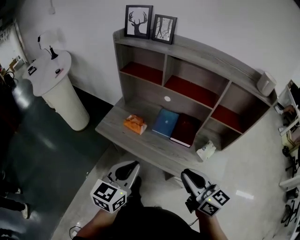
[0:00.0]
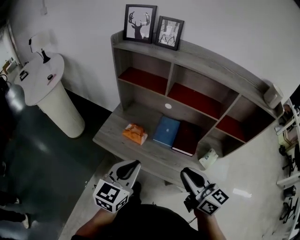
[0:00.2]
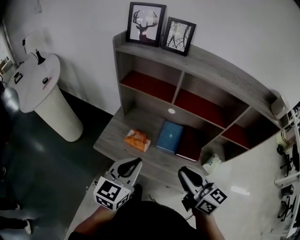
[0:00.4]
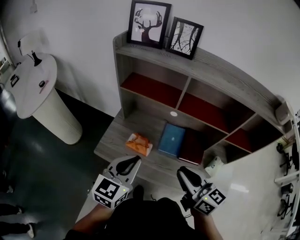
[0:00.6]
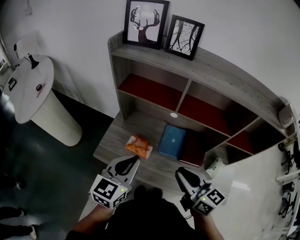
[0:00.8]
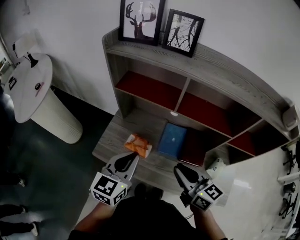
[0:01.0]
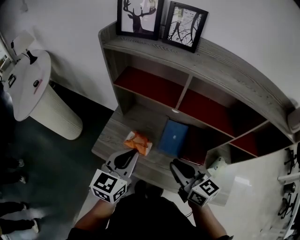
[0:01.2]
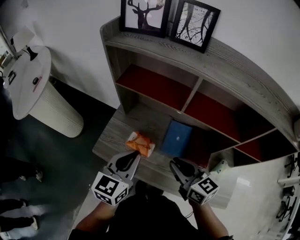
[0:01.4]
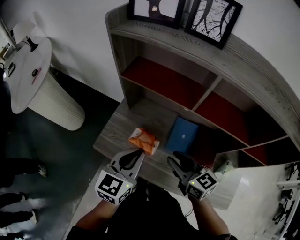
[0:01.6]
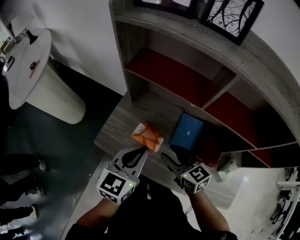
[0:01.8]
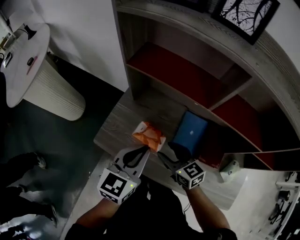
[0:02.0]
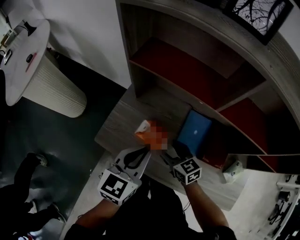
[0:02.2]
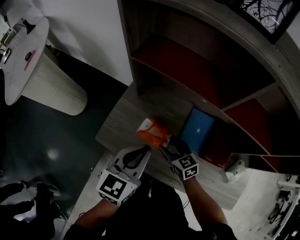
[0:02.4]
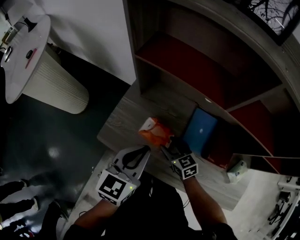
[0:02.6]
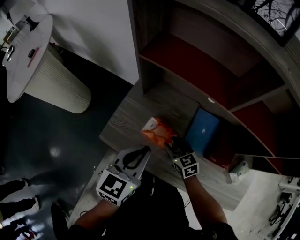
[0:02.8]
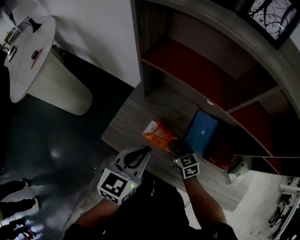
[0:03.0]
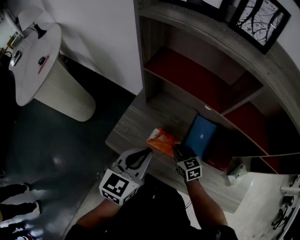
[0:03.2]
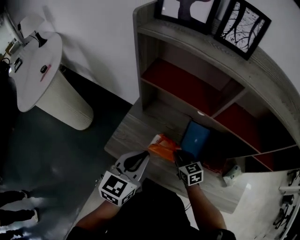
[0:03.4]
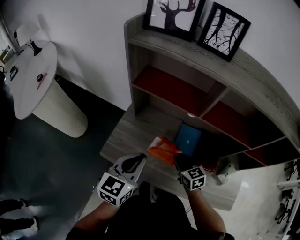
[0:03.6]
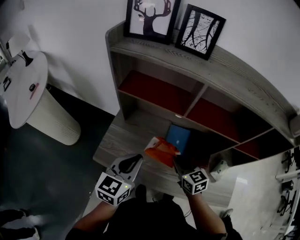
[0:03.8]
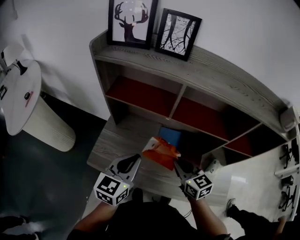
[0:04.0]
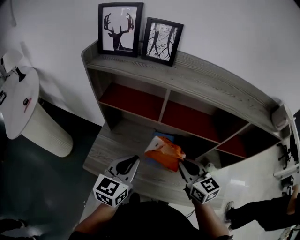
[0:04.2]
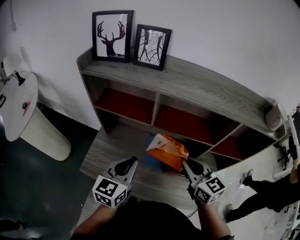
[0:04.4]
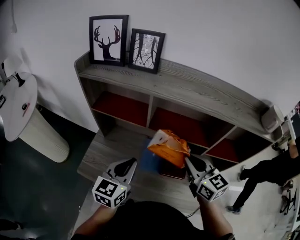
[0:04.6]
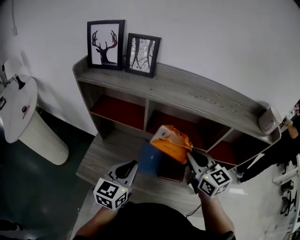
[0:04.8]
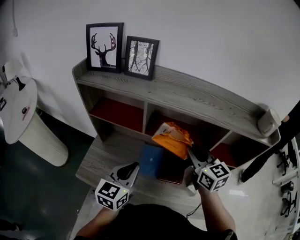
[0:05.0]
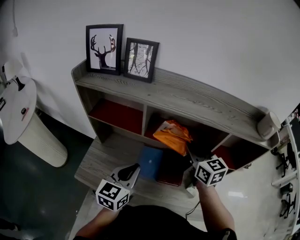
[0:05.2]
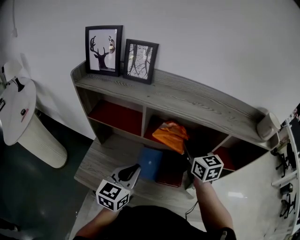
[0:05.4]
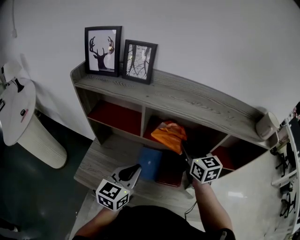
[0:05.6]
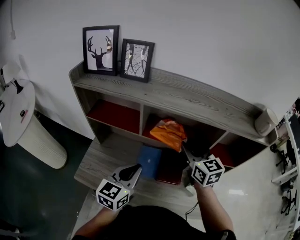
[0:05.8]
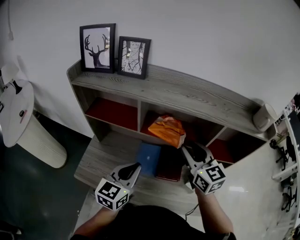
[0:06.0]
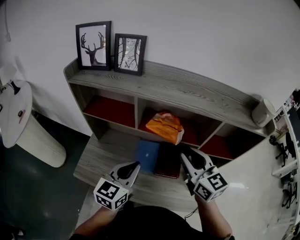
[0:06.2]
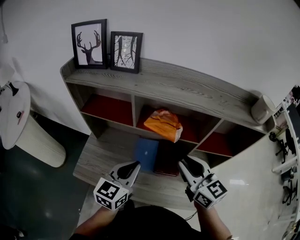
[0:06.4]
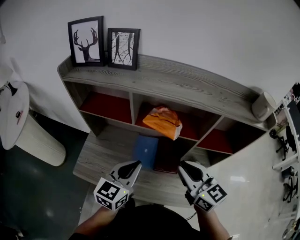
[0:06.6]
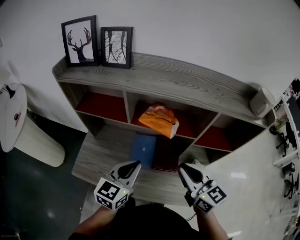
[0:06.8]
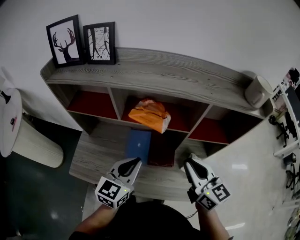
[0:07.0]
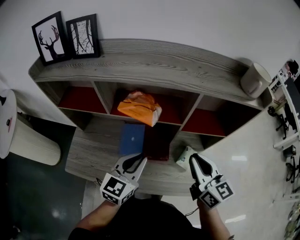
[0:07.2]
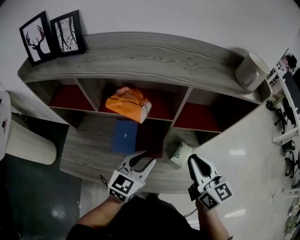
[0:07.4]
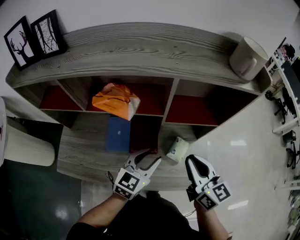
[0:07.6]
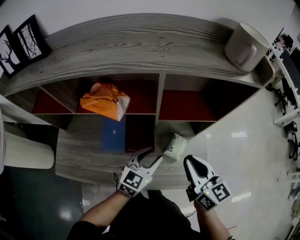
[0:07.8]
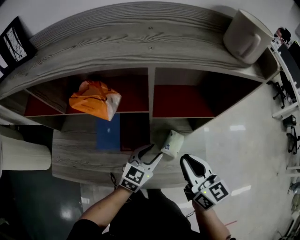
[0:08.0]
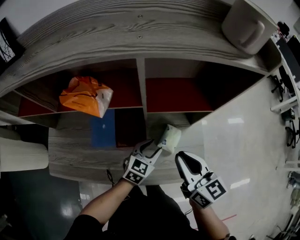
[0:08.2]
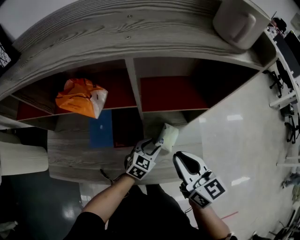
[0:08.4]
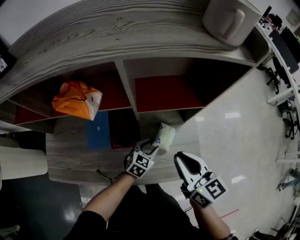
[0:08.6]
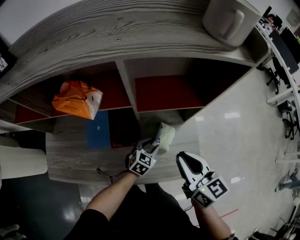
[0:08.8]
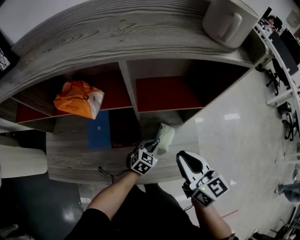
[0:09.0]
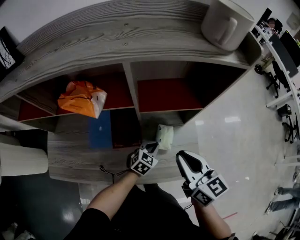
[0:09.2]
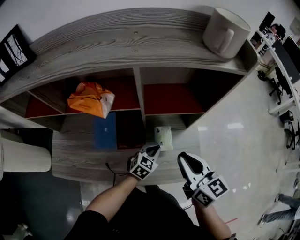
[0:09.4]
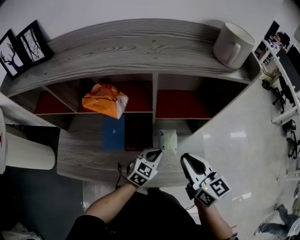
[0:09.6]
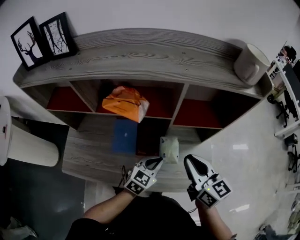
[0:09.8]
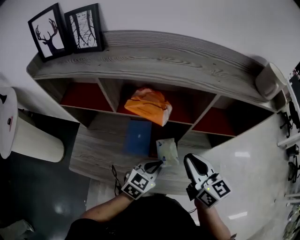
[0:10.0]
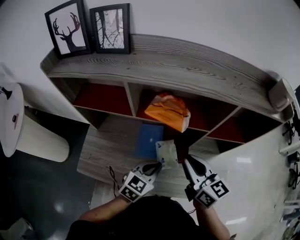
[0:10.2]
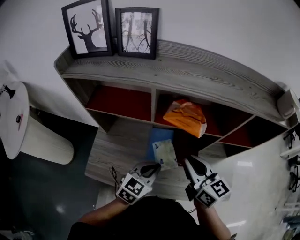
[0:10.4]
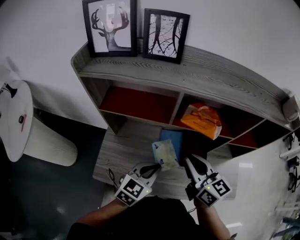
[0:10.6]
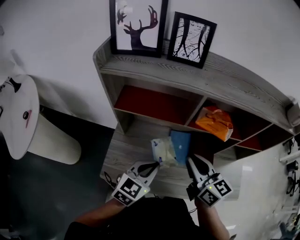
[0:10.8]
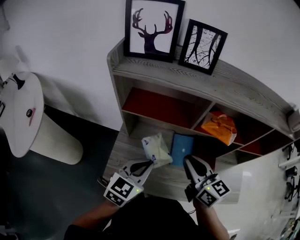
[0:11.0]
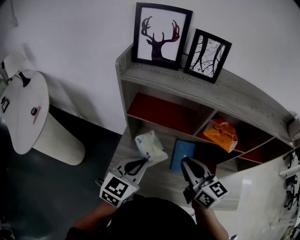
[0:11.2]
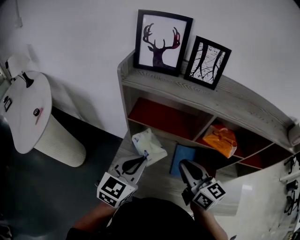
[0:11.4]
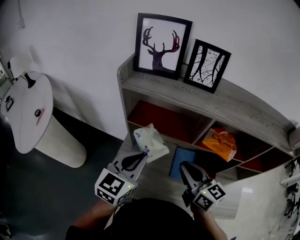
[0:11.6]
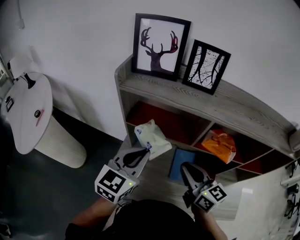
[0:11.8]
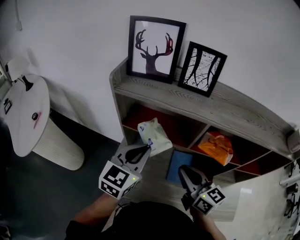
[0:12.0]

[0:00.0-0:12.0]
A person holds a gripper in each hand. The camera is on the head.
0:00.0 to 0:01.6: The left gripper is displaced forward by roughly 30 cm; the right gripper travels forward and to the left by approximately 35 cm.
0:01.6 to 0:03.0: The right gripper is displaced downward by approximately 20 cm, changes its angle by approximately 20 degrees, and opens, then closes again; the left gripper goes some 5 cm downward.
0:03.0 to 0:04.4: The right gripper travels upward and to the right by some 40 cm, and changes its angle by some 30 degrees; the left gripper shifts some 15 cm to the right and upward.
0:04.4 to 0:06.0: The right gripper shifts some 10 cm upward, forward and to the right. Meanwhile the left gripper shifts about 5 cm to the right.
0:06.0 to 0:07.6: The left gripper shifts about 25 cm to the right and downward, swivels roughly 20 degrees, and opens up, while the right gripper moves to the right, backward and downward, about 25 cm, and rotates roughly 20 degrees.
0:07.6 to 0:09.0: The right gripper moves some 5 cm; the left gripper travels downward and to the right by some 25 cm, changes its angle by about 30 degrees, and closes up.
0:09.0 to 0:10.4: The left gripper shifts about 40 cm to the left and upward, and turns by about 20 degrees, while the right gripper shifts roughly 30 cm to the left.
0:10.4 to 0:12.0: The right gripper is displaced to the left by about 15 cm; the left gripper shifts some 30 cm to the left, upward and forward, and turns by approximately 20 degrees.

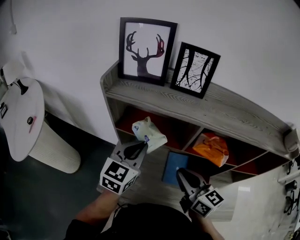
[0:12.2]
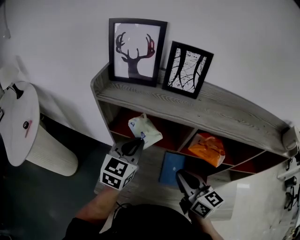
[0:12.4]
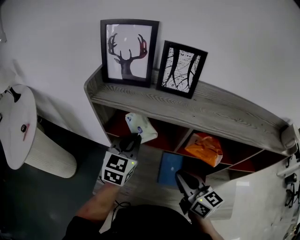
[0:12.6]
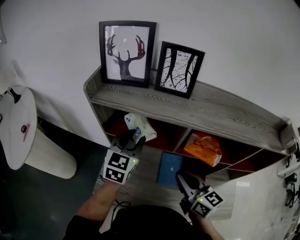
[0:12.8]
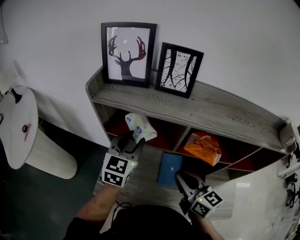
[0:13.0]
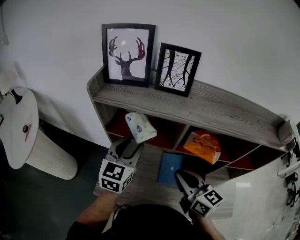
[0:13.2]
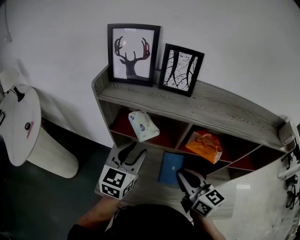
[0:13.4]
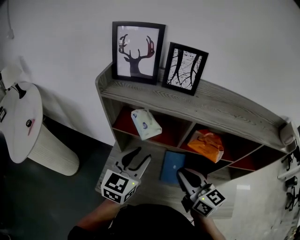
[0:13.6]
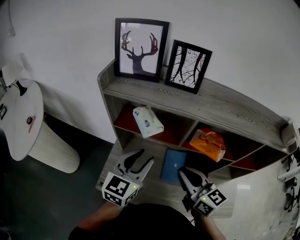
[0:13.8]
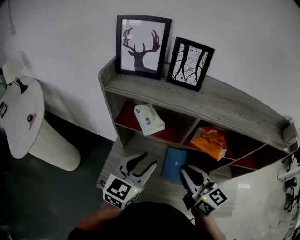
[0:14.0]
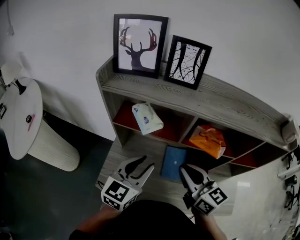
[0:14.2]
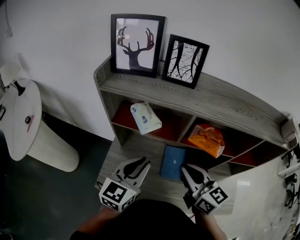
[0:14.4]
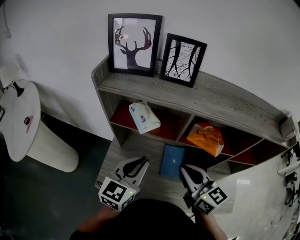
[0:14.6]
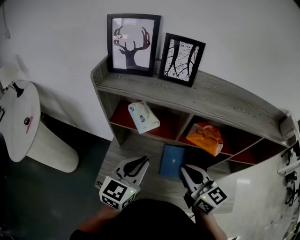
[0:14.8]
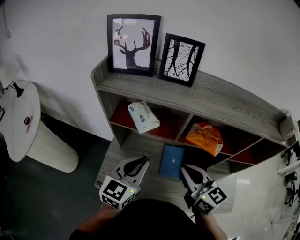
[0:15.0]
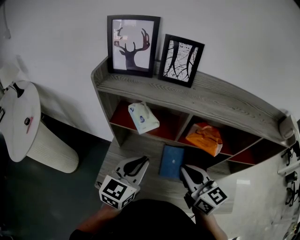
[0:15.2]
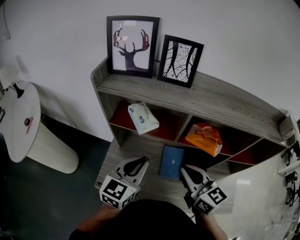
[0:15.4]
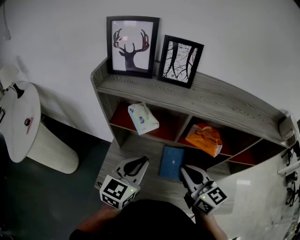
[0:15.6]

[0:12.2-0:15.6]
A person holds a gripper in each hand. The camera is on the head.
0:12.2 to 0:13.8: The left gripper heads backward, covering approximately 5 cm, and opens up.
0:13.8 to 0:15.6: The left gripper closes its fingers.

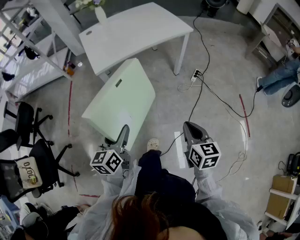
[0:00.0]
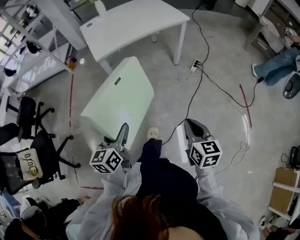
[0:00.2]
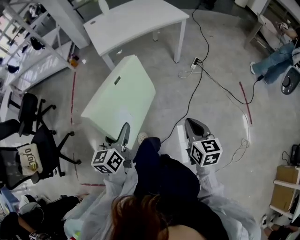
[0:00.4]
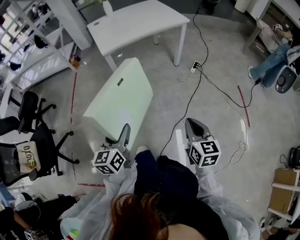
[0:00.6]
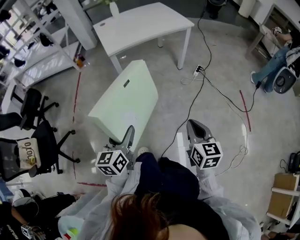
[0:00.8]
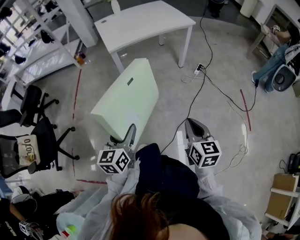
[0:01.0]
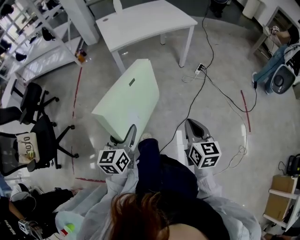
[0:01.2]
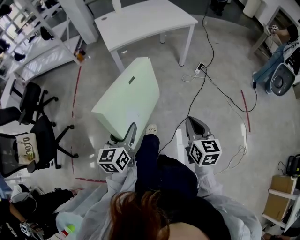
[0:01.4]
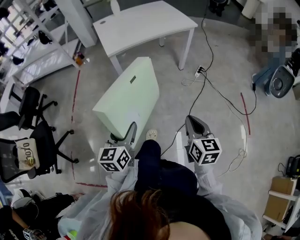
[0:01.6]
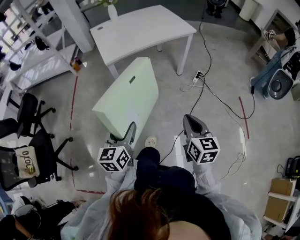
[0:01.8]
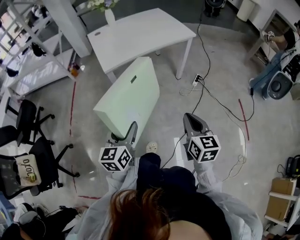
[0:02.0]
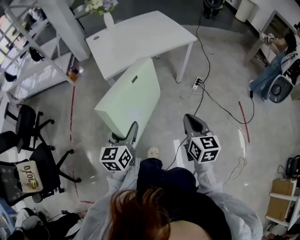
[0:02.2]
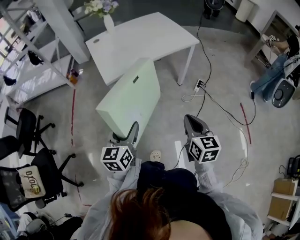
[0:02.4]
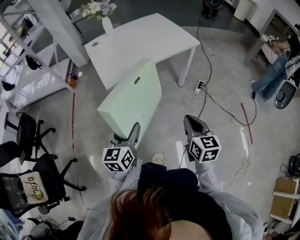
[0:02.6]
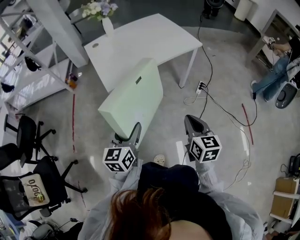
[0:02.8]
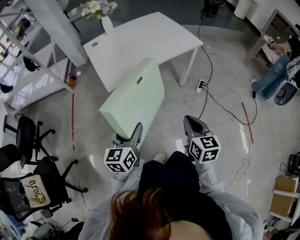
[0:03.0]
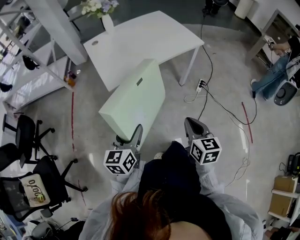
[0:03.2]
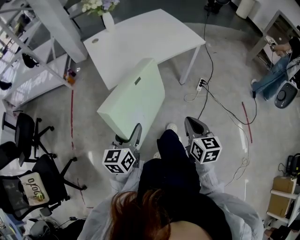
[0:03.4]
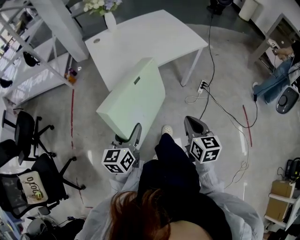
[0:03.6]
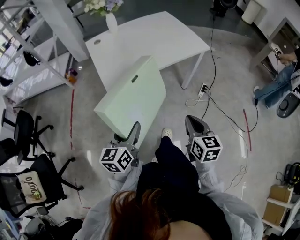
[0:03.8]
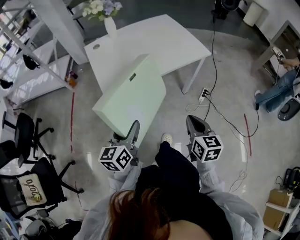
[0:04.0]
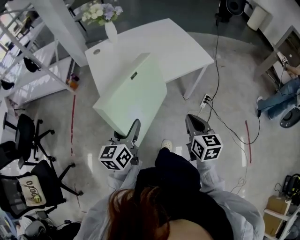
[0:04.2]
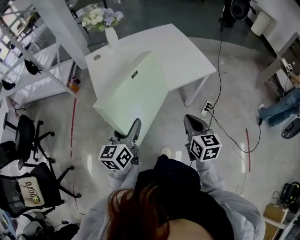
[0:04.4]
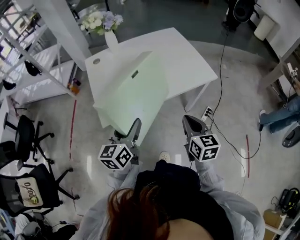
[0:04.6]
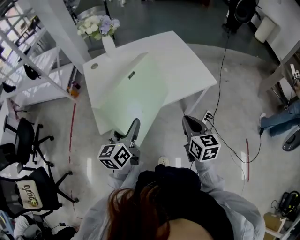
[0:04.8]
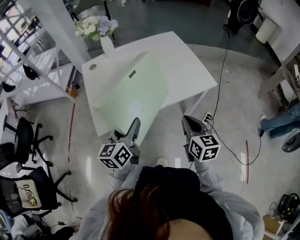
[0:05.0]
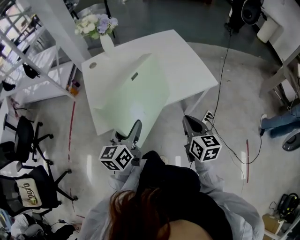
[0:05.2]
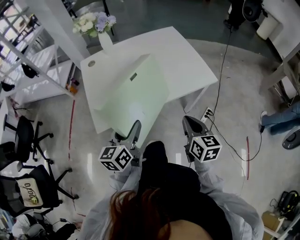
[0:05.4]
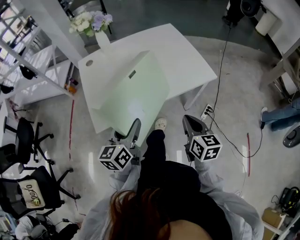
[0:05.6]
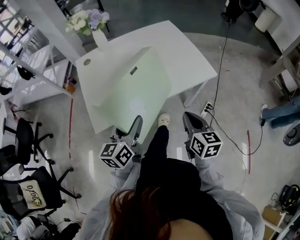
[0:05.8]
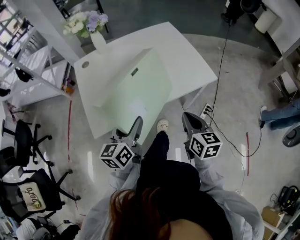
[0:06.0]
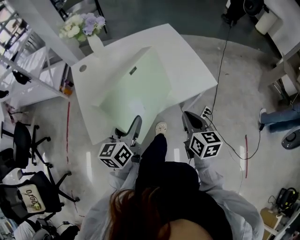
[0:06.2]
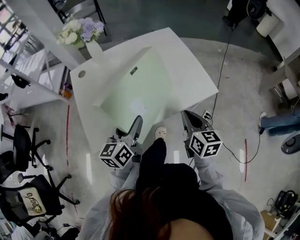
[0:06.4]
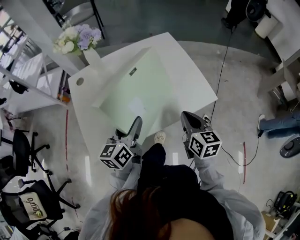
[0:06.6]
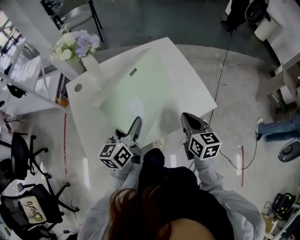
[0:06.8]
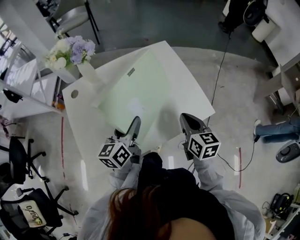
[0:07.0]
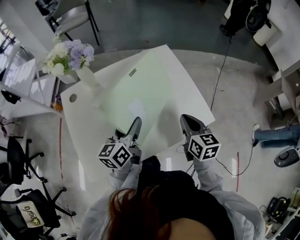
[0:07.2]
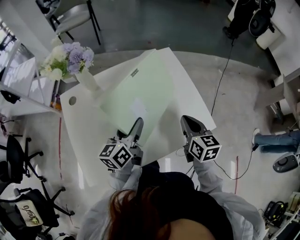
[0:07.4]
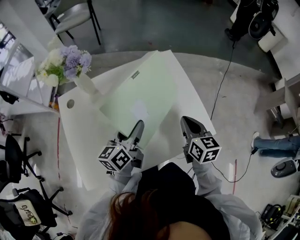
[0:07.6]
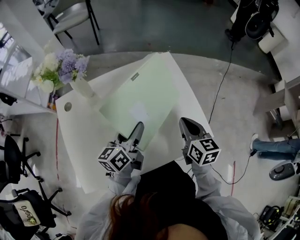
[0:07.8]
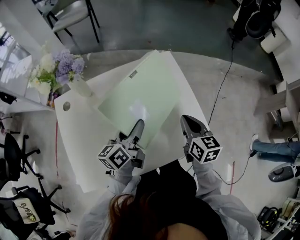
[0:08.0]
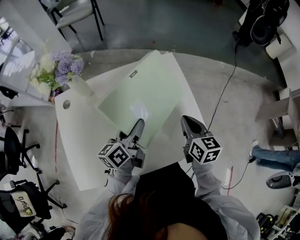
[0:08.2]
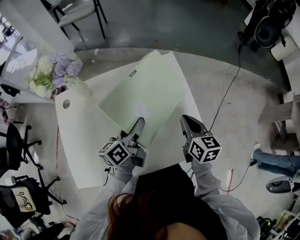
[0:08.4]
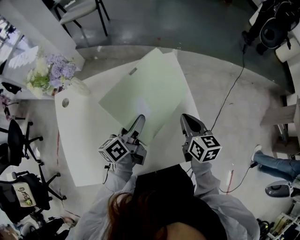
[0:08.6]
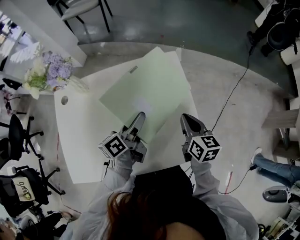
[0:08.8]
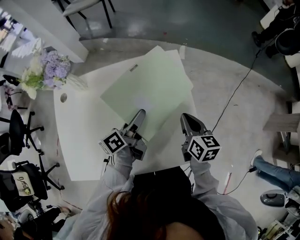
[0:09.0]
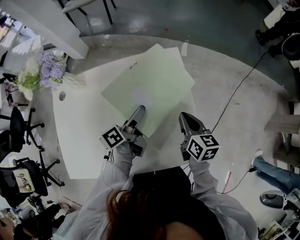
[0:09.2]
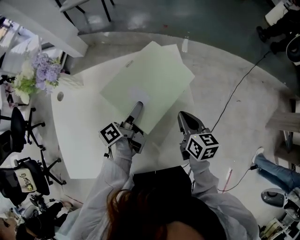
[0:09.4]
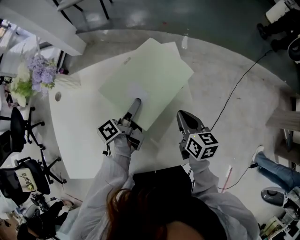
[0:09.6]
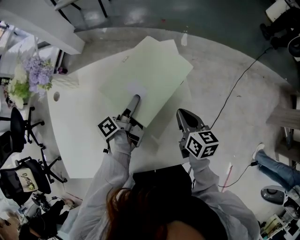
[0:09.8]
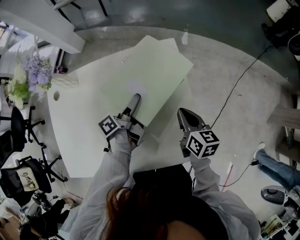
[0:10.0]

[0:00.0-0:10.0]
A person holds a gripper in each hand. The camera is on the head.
0:00.0 to 0:01.4: The grippers both shift backward by about 15 cm.
0:01.4 to 0:02.8: Both grippers move forward, some 30 cm.
0:02.8 to 0:04.2: The two grippers go about 20 cm forward.
0:04.2 to 0:05.8: Both grippers move forward and to the right, some 20 cm.
0:05.8 to 0:07.2: The two grippers go about 30 cm forward.
0:07.2 to 0:08.6: The right gripper moves forward, some 15 cm, while the left gripper is displaced forward and to the right by some 15 cm, and swivels roughly 20 degrees.
0:08.6 to 0:10.0: The left gripper shifts approximately 15 cm downward and forward, and changes its angle by some 30 degrees. The right gripper moves downward, some 5 cm.
